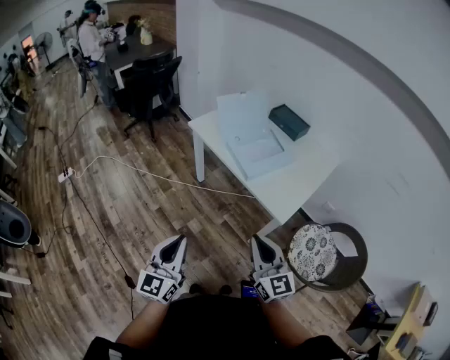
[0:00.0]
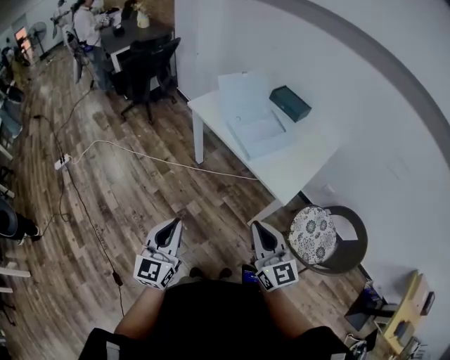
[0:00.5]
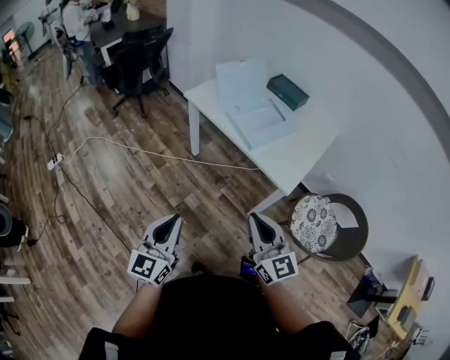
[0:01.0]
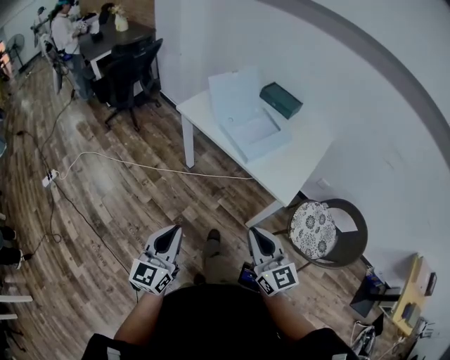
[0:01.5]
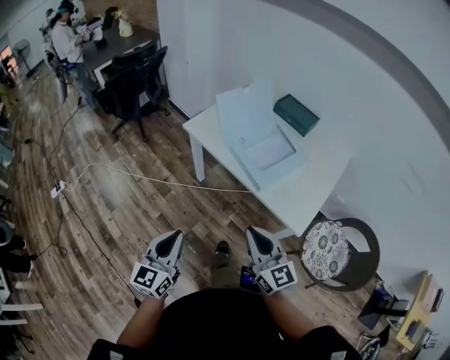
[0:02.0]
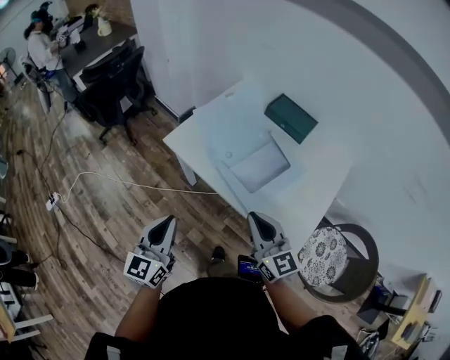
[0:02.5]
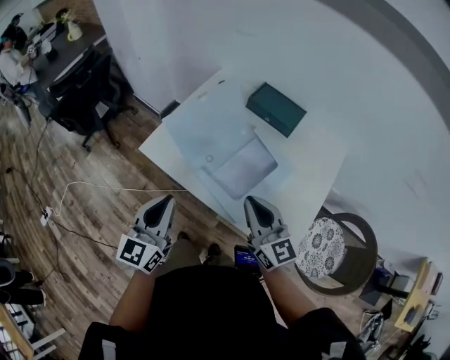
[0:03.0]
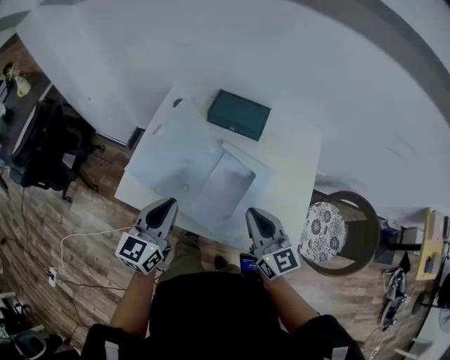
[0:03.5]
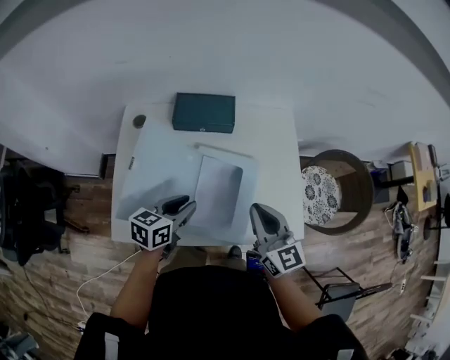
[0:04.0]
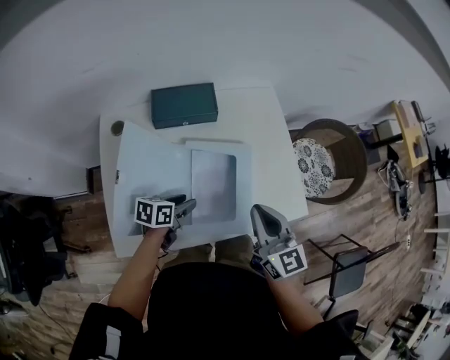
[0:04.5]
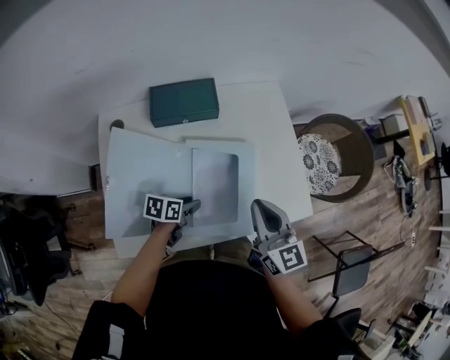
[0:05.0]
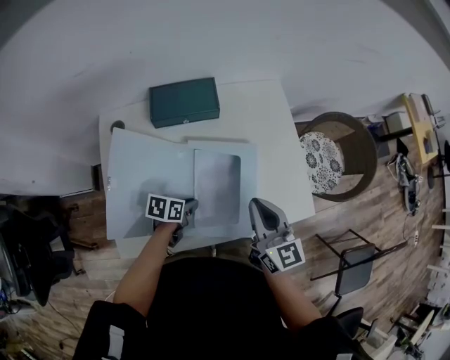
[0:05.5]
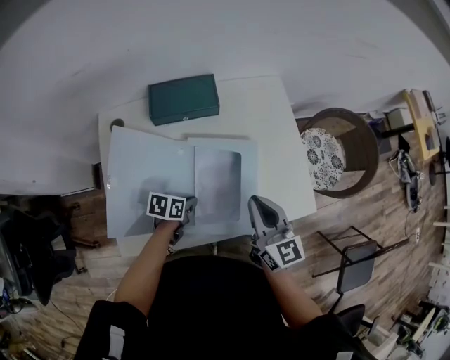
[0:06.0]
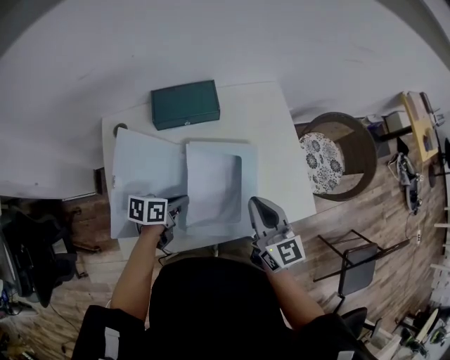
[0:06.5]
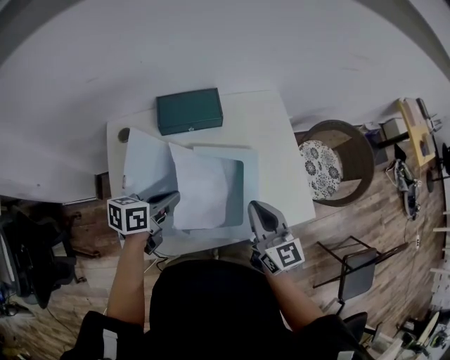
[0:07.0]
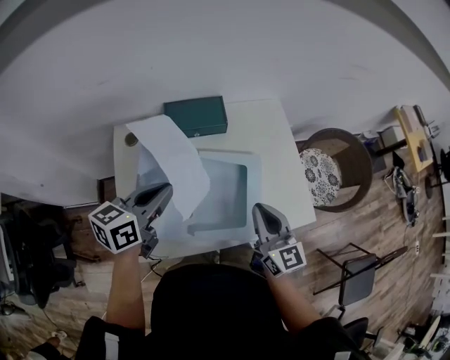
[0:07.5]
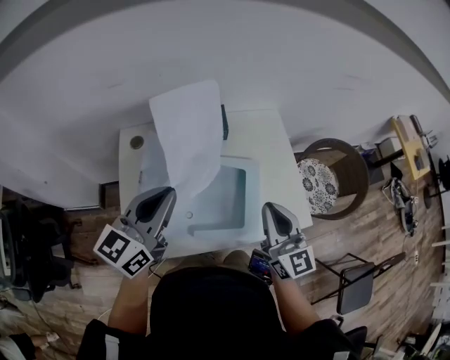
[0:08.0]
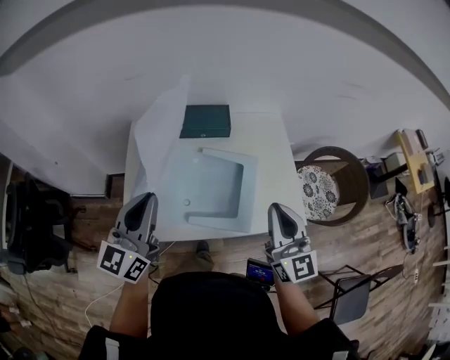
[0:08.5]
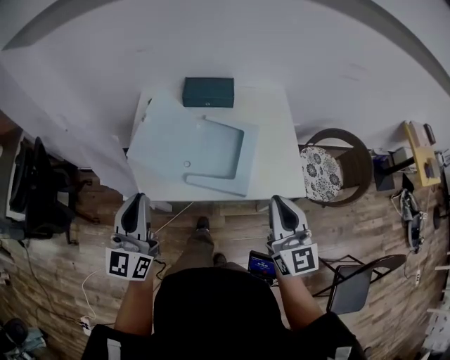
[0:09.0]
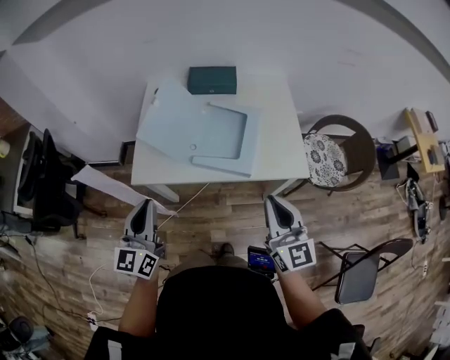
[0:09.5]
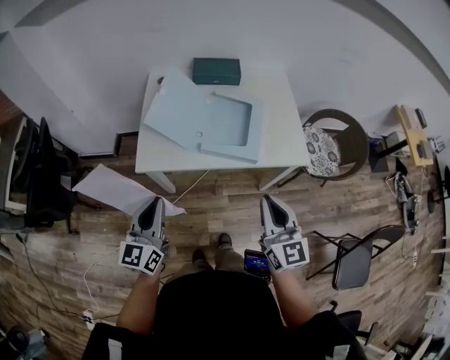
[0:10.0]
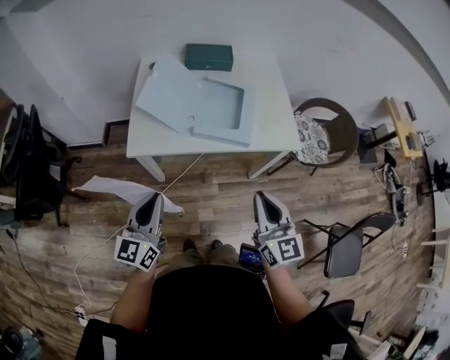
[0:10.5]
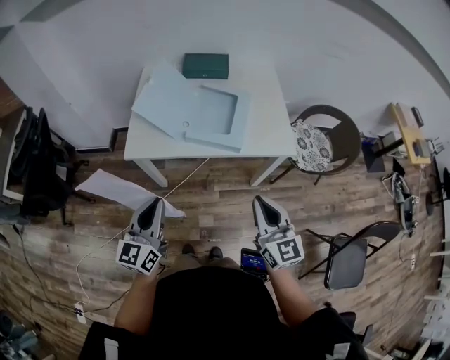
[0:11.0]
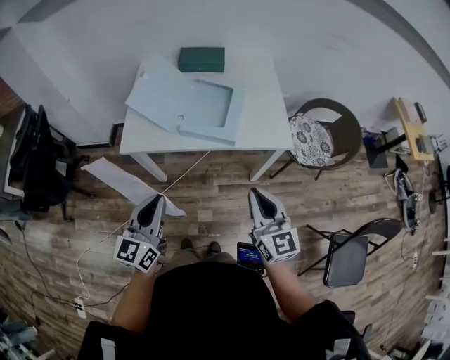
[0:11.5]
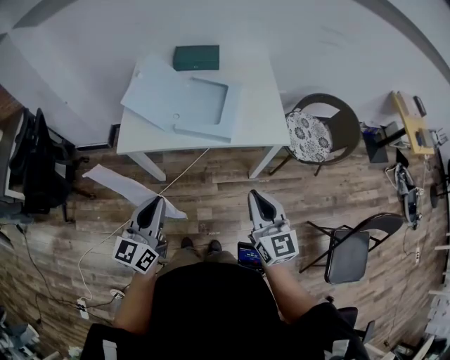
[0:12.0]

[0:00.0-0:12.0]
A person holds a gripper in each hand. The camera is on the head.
0:00.0 to 0:02.0: Both grippers travel together forward and to the left, roughly 20 cm.
0:02.0 to 0:04.0: The right gripper shifts by approximately 35 cm, and changes its angle by about 50 degrees. Meanwhile the left gripper changes place by some 50 cm, turns by roughly 70 degrees, and opens its fingers.
0:04.0 to 0:06.0: The left gripper travels downward by about 15 cm, changes its angle by about 30 degrees, and closes its fingers.
0:06.0 to 0:08.0: The right gripper is displaced upward by roughly 10 cm, while the left gripper shifts approximately 40 cm upward, and tips its fingers upward by roughly 50 degrees.
0:08.0 to 0:10.0: The two grippers go about 30 cm backward. The left gripper changes its angle by roughly 30 degrees.
0:10.0 to 0:12.0: Both grippers travel together to the right and backward, roughly 15 cm.

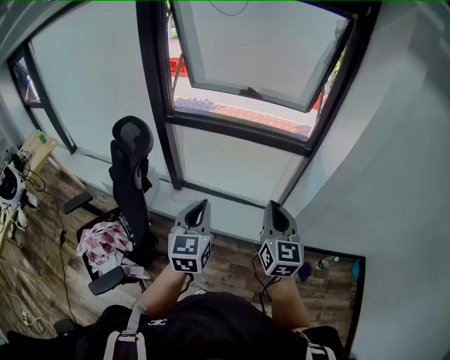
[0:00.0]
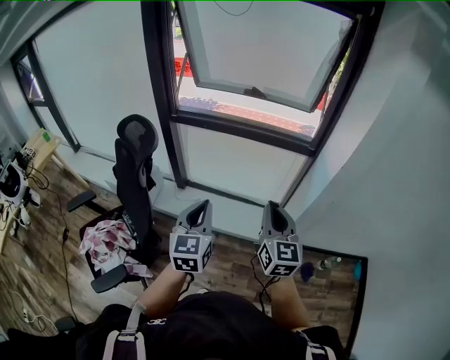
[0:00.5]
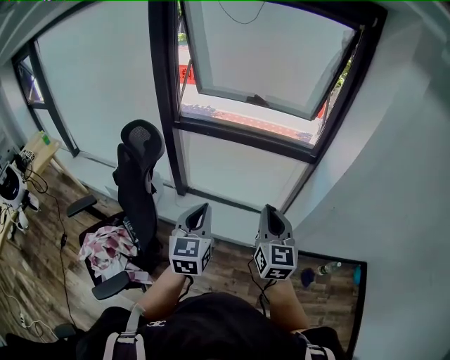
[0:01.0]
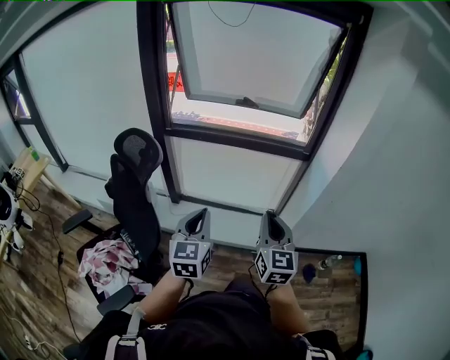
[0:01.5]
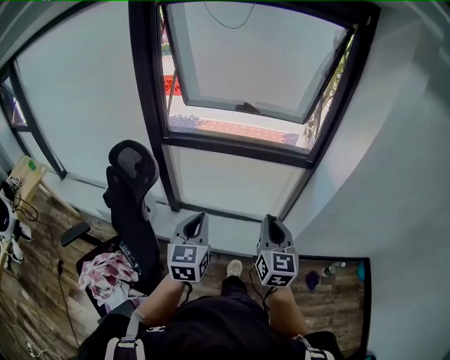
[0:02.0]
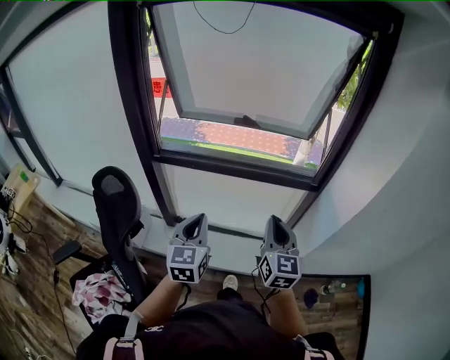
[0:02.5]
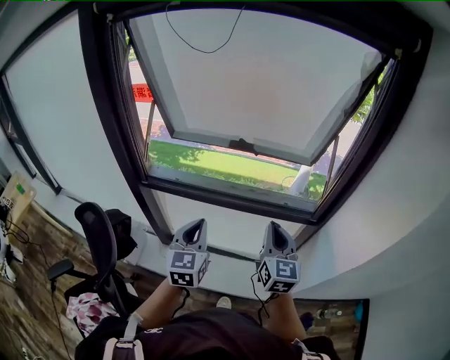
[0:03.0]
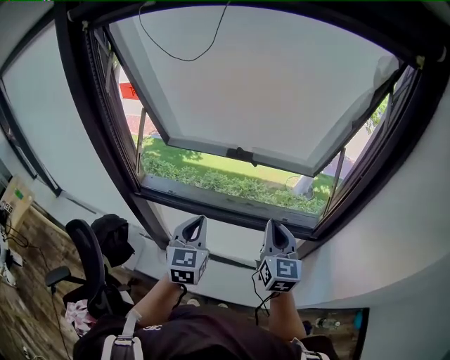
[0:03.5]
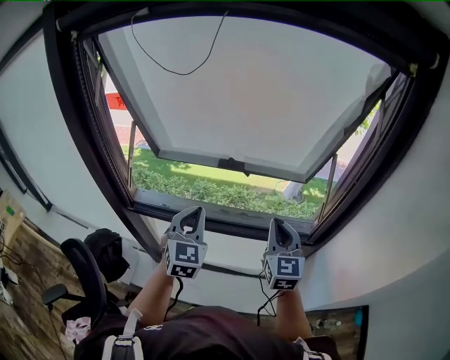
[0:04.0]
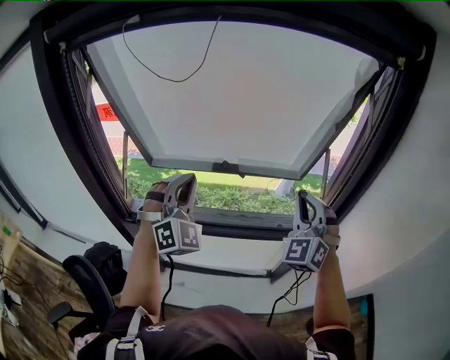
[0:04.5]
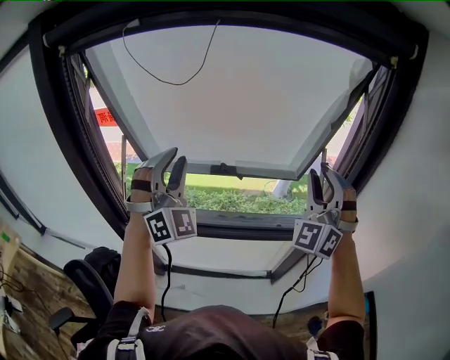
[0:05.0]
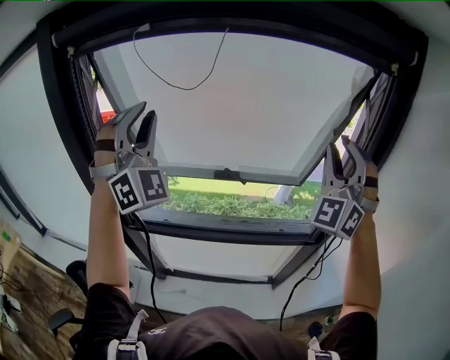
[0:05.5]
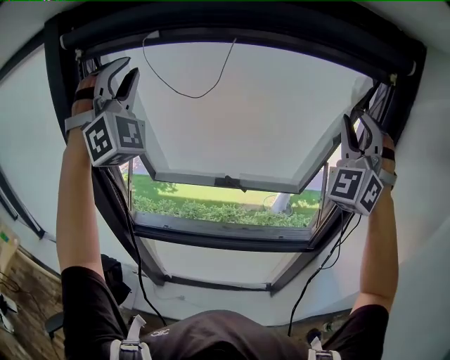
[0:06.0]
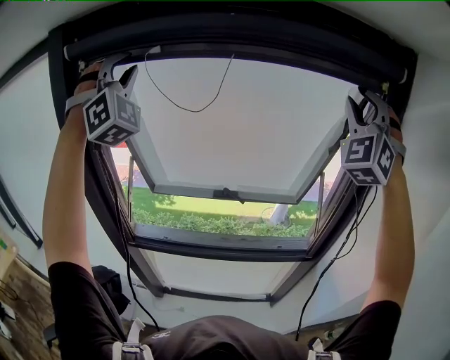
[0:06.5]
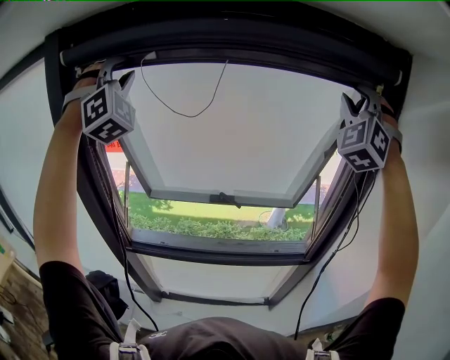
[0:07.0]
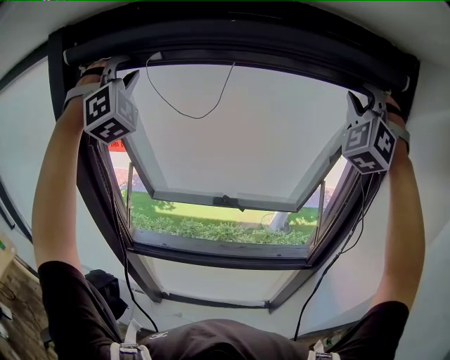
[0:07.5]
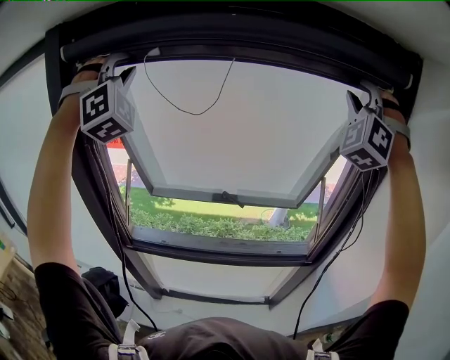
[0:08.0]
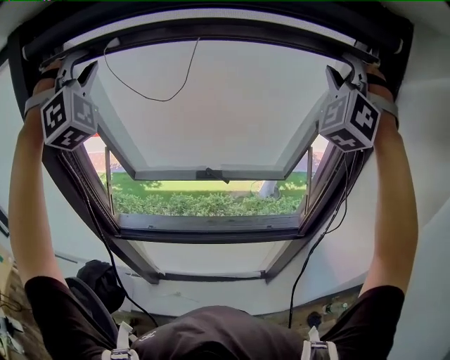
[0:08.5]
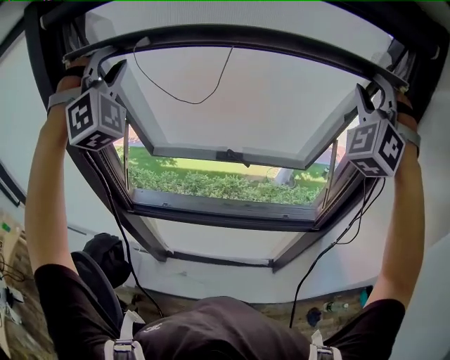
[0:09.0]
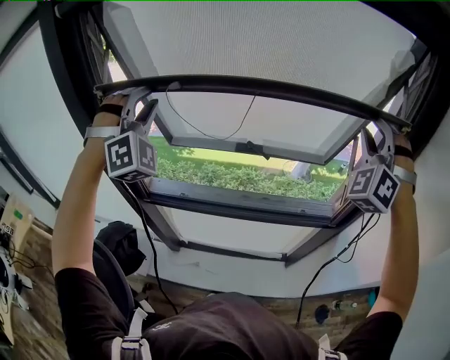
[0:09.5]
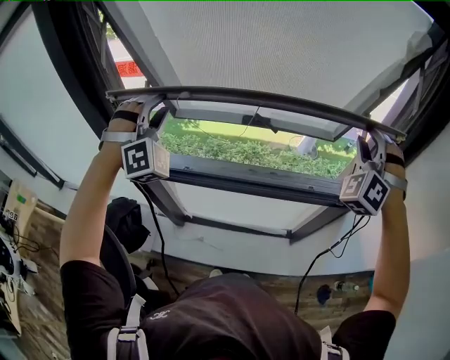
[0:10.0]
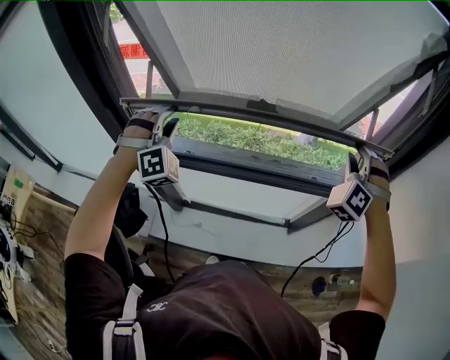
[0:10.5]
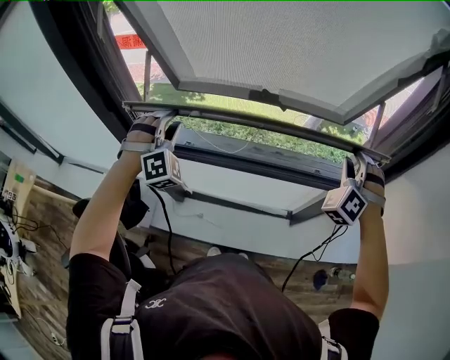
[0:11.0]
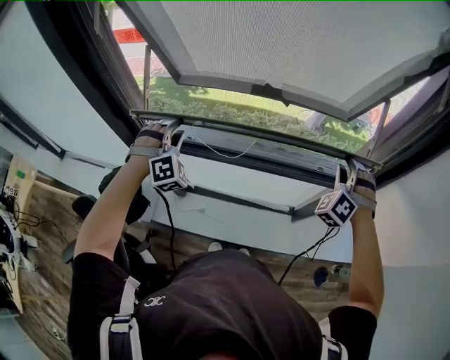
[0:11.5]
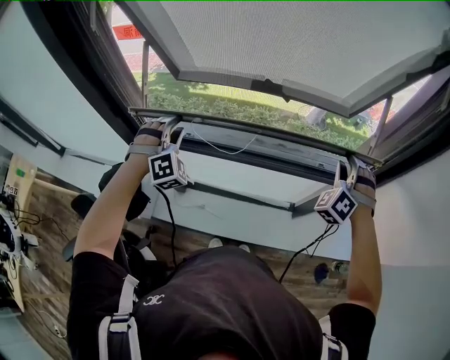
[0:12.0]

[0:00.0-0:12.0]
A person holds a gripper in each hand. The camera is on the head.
0:00.0 to 0:02.0: The right gripper heads to the left, covering approximately 5 cm. The left gripper goes some 10 cm to the left and forward.
0:02.0 to 0:04.0: The pair of grippers is taken forward, roughly 50 cm. The left gripper turns by approximately 20 degrees.
0:04.0 to 0:06.0: The two grippers go approximately 40 cm upward. The left gripper twists approximately 60 degrees clockwise, seen from behind, and opens; the right gripper rotates around the line of its fingers by some 70 degrees, counterclockwise from behind, and opens.
0:06.0 to 0:08.0: The right gripper heads upward and forward, covering roughly 10 cm. The left gripper is displaced forward by roughly 5 cm.
0:08.0 to 0:10.0: The two grippers go some 30 cm downward. The right gripper changes its angle by roughly 20 degrees. The left gripper turns by approximately 20 degrees.
0:10.0 to 0:12.0: The grippers both shift downward by roughly 20 cm.

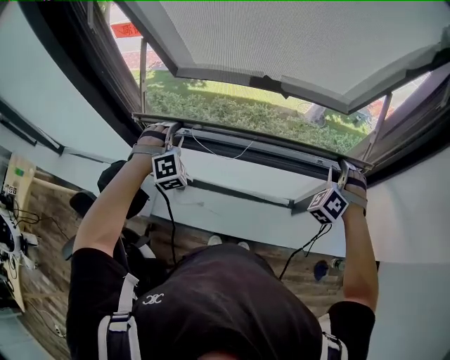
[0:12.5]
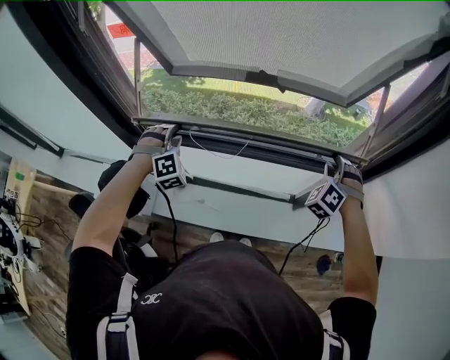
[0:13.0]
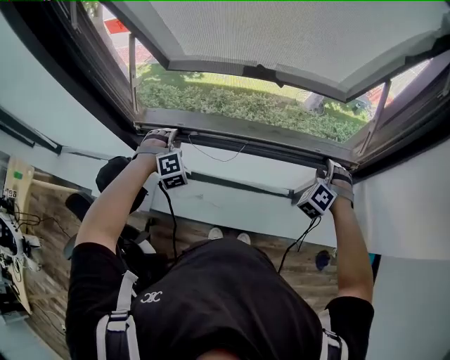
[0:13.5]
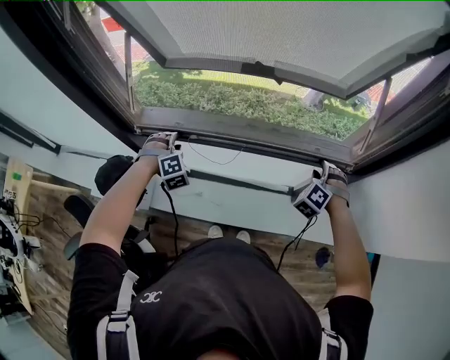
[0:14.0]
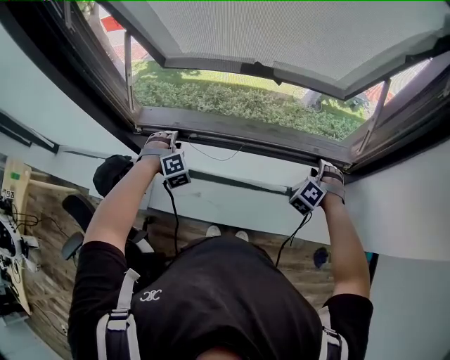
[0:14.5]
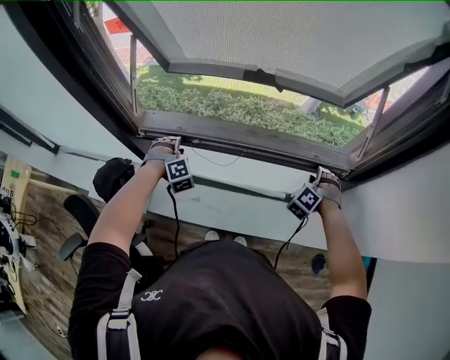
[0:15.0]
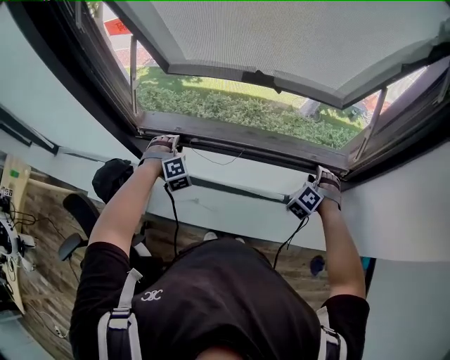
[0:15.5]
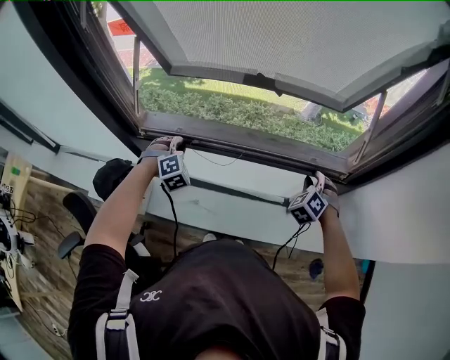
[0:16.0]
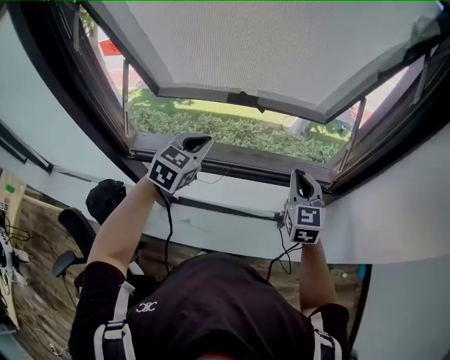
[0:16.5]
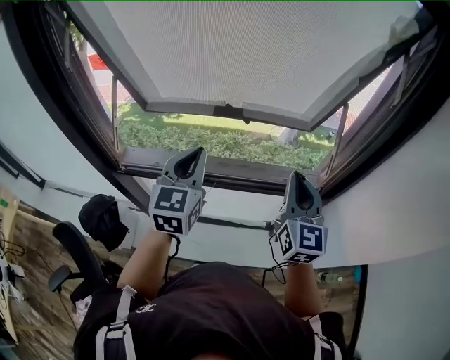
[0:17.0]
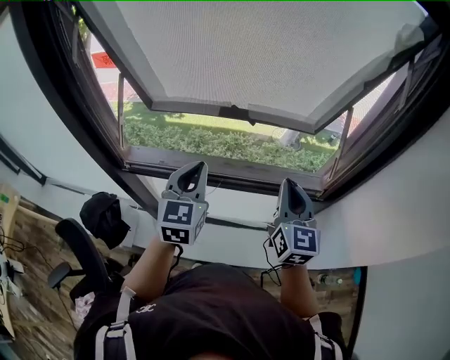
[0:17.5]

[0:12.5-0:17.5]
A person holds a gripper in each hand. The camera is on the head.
0:12.5 to 0:15.0: Both grippers travel together downward, approximately 15 cm.
0:15.0 to 0:17.5: The left gripper travels upward and to the right by approximately 30 cm, rotates around the line of its fingers by approximately 70 degrees, counterclockwise from behind, and closes its fingers. The right gripper moves upward, approximately 25 cm, rotates around the line of its fingers by some 80 degrees, clockwise from behind, and closes up.
